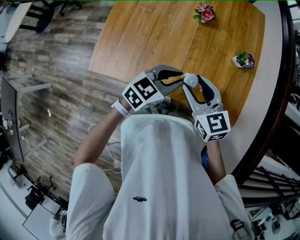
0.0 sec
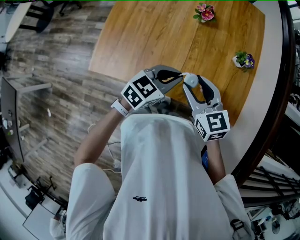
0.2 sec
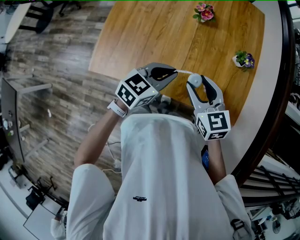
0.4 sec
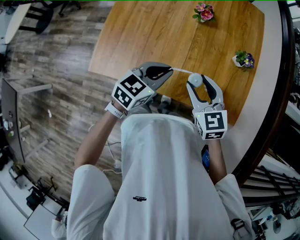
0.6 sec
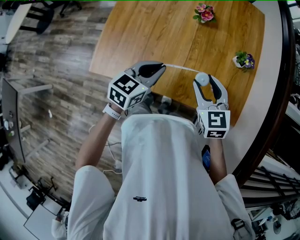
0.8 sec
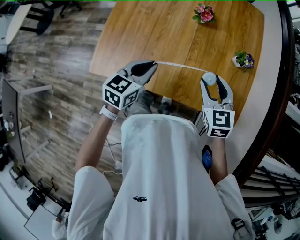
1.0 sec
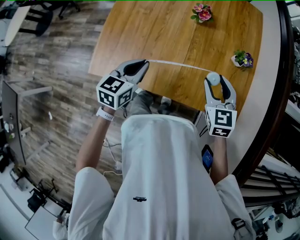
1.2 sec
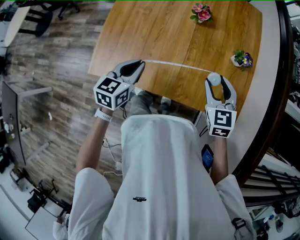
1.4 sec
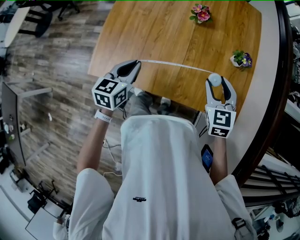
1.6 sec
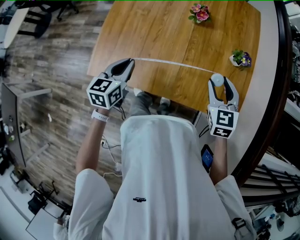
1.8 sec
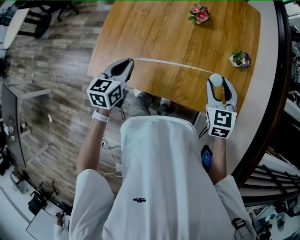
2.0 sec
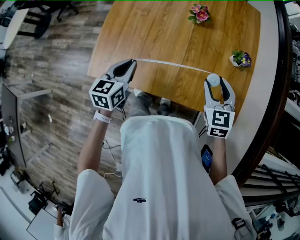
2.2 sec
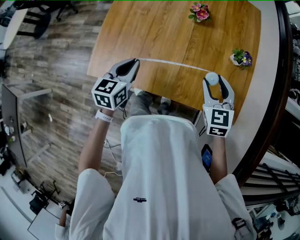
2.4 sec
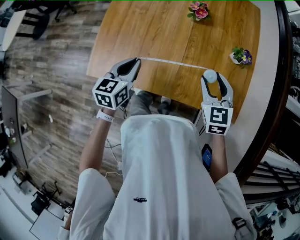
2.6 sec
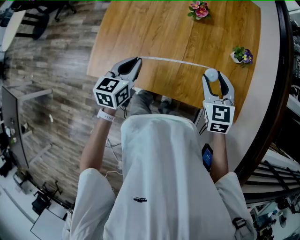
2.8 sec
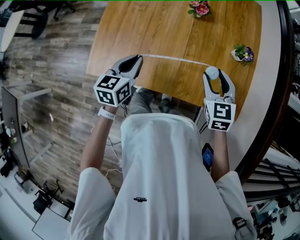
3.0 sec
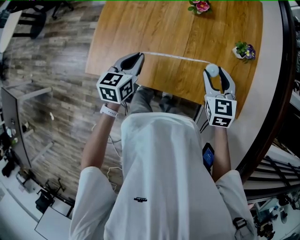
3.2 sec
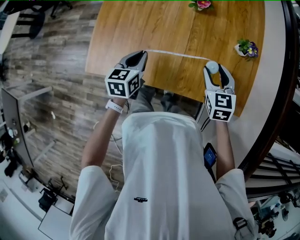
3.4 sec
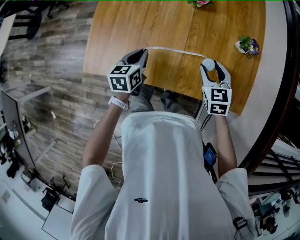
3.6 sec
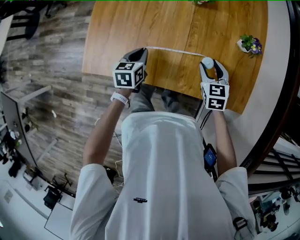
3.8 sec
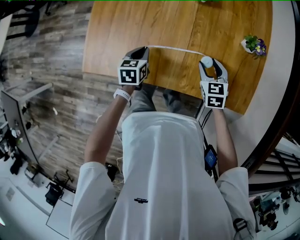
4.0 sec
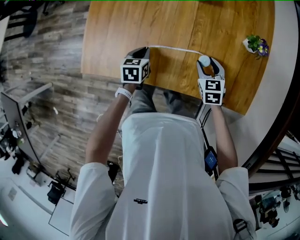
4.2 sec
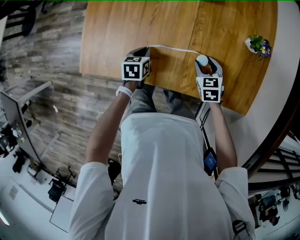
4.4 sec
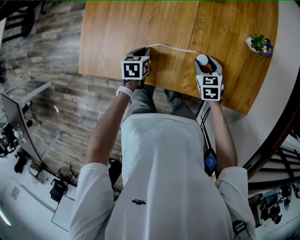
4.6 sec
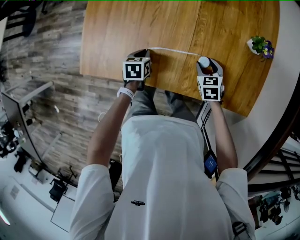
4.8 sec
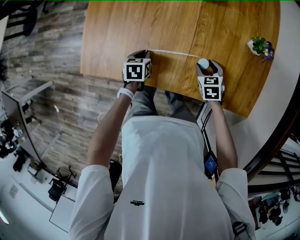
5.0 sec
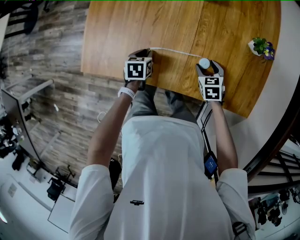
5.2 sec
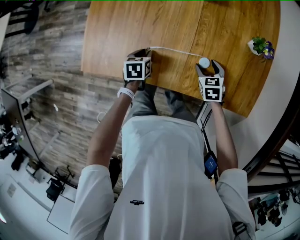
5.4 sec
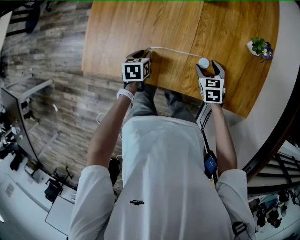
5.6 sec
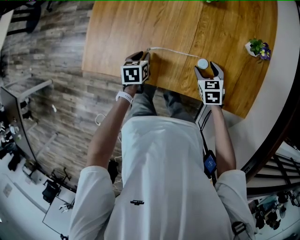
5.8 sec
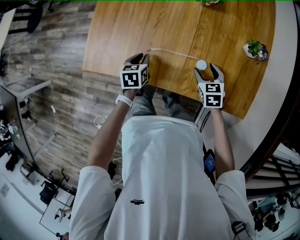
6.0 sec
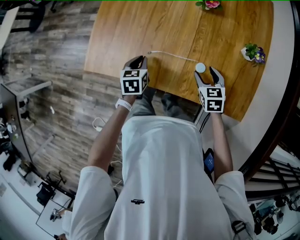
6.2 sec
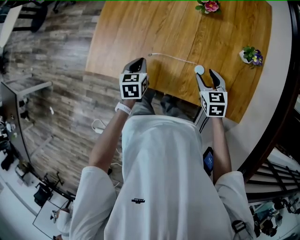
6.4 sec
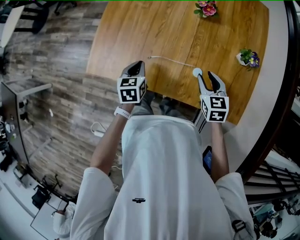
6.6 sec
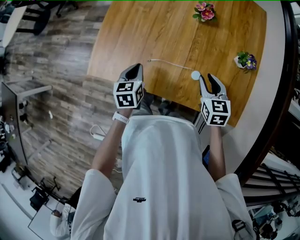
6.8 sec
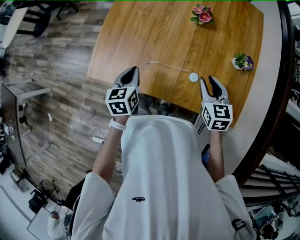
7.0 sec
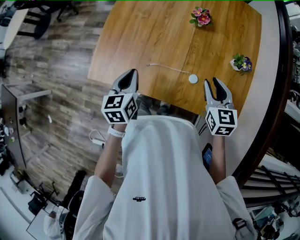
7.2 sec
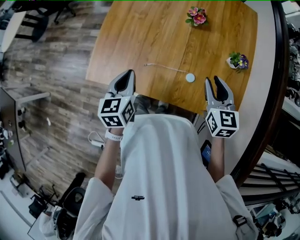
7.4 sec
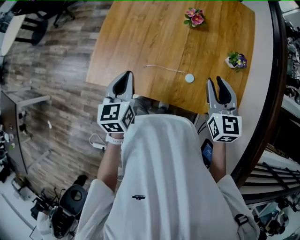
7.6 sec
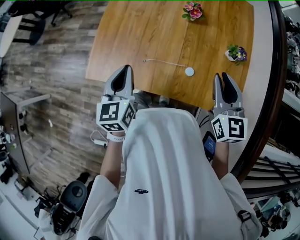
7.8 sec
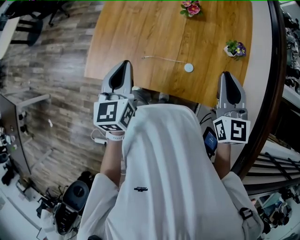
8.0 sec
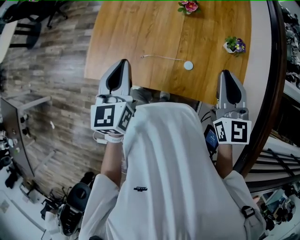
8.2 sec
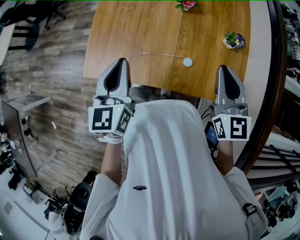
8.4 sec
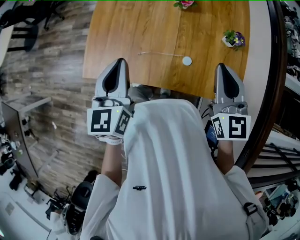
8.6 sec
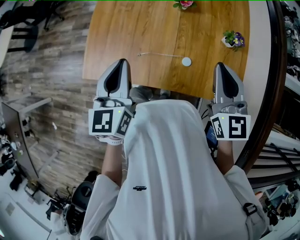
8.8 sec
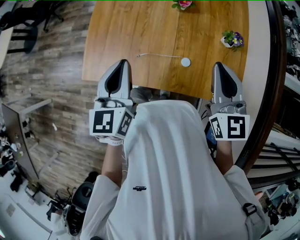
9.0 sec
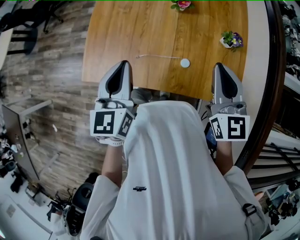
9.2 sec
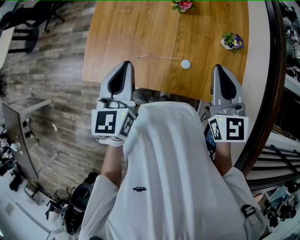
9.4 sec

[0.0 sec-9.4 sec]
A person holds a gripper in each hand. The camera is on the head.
0.0 sec to 1.6 sec: The left gripper goes some 15 cm to the left, and turns by roughly 30 degrees, while the right gripper travels to the right and forward by some 10 cm, and changes its angle by approximately 30 degrees.
1.6 sec to 3.2 sec: The grippers move only a little.
3.2 sec to 4.8 sec: Both grippers move downward, some 20 cm. The left gripper swivels approximately 30 degrees. The right gripper turns by some 20 degrees.
4.8 sec to 6.2 sec: The two grippers go about 5 cm upward.
6.2 sec to 7.8 sec: The two grippers go some 25 cm upward. The left gripper swivels about 30 degrees. The right gripper points its fingers about 30 degrees further upward, and closes.
7.8 sec to 9.4 sec: The left gripper shifts some 5 cm upward.

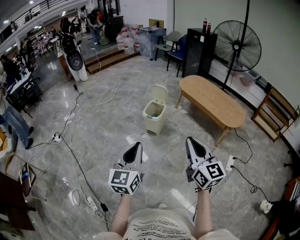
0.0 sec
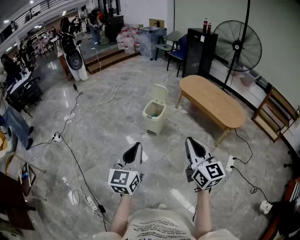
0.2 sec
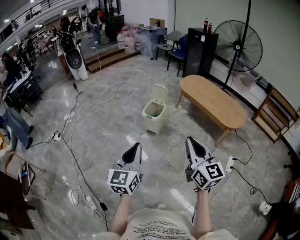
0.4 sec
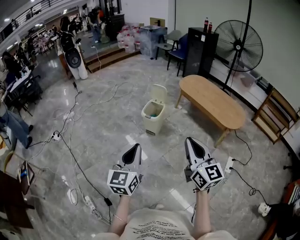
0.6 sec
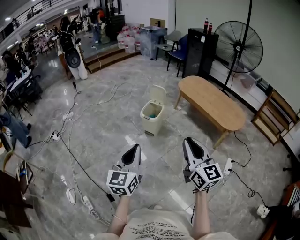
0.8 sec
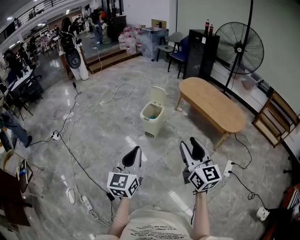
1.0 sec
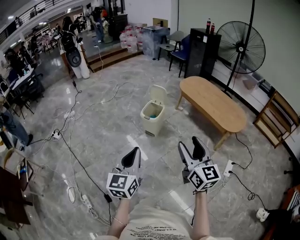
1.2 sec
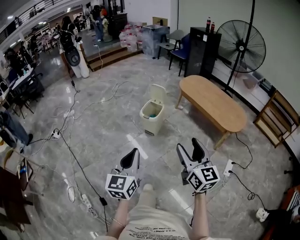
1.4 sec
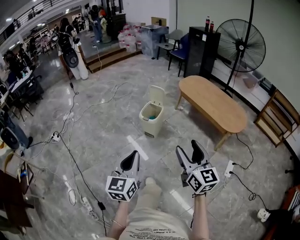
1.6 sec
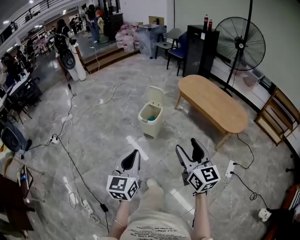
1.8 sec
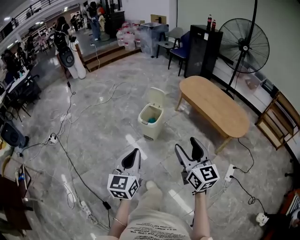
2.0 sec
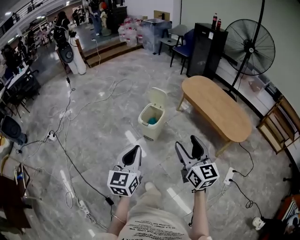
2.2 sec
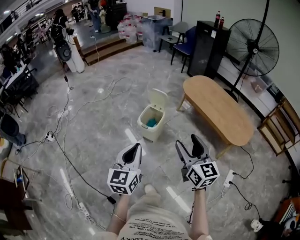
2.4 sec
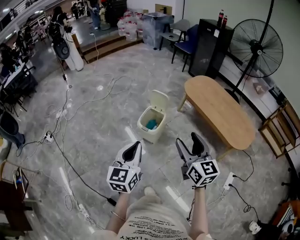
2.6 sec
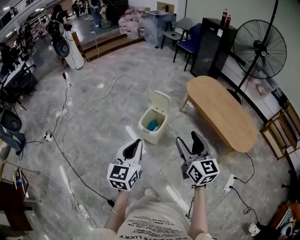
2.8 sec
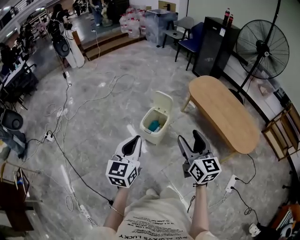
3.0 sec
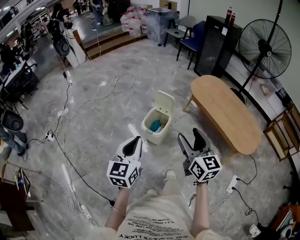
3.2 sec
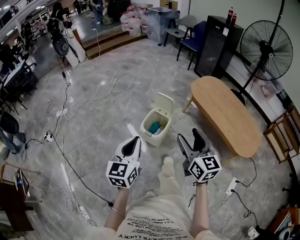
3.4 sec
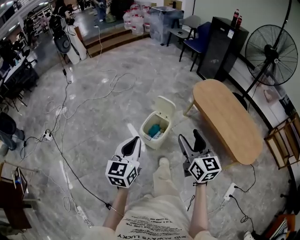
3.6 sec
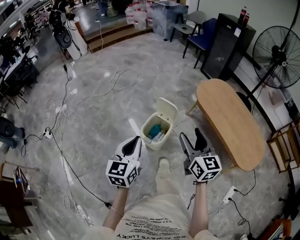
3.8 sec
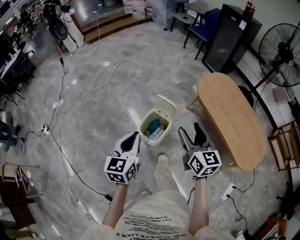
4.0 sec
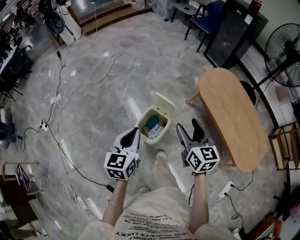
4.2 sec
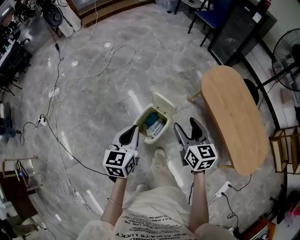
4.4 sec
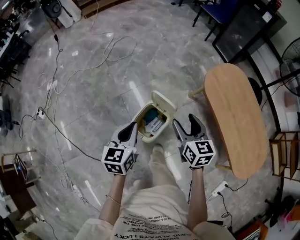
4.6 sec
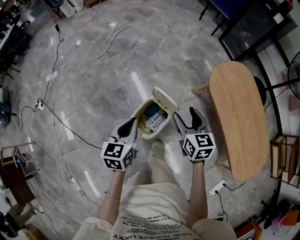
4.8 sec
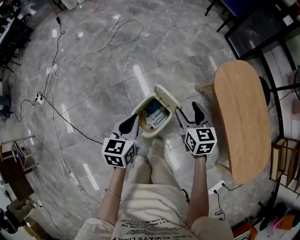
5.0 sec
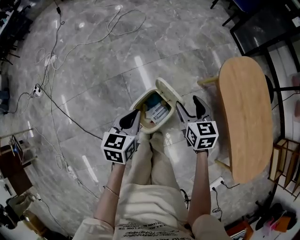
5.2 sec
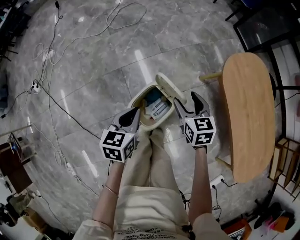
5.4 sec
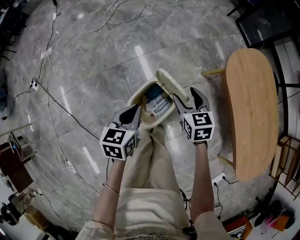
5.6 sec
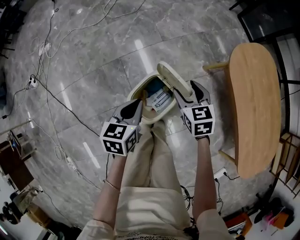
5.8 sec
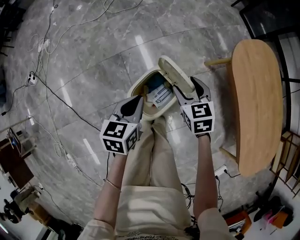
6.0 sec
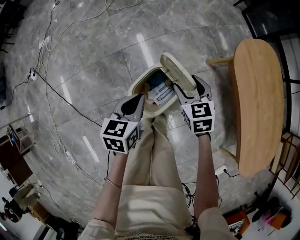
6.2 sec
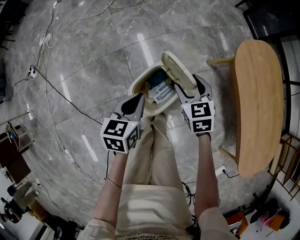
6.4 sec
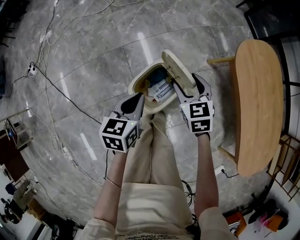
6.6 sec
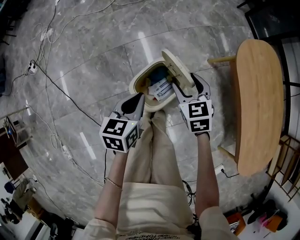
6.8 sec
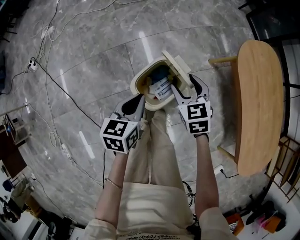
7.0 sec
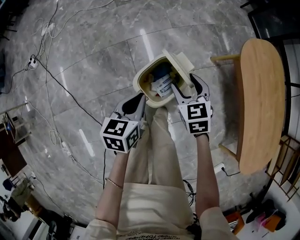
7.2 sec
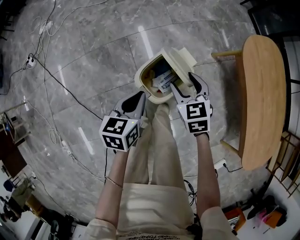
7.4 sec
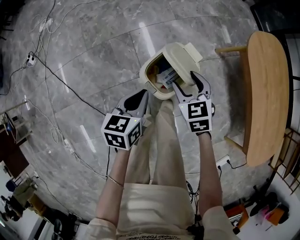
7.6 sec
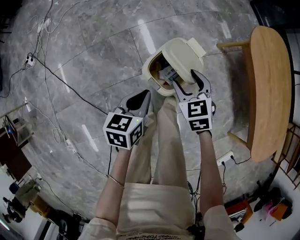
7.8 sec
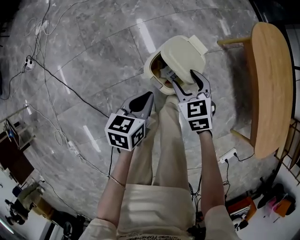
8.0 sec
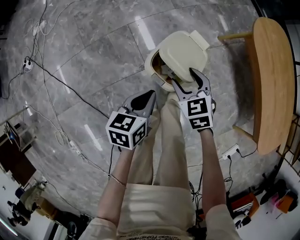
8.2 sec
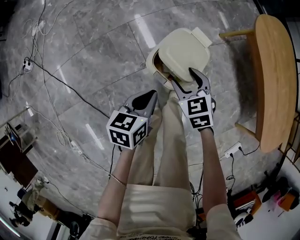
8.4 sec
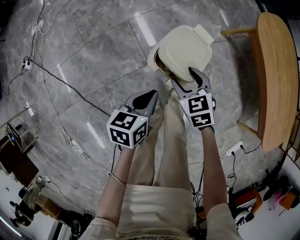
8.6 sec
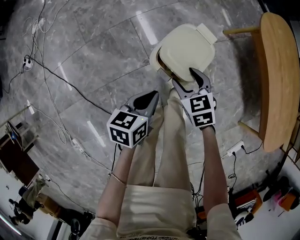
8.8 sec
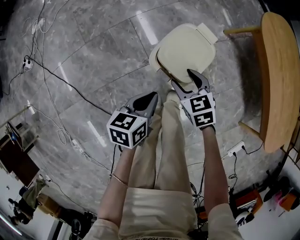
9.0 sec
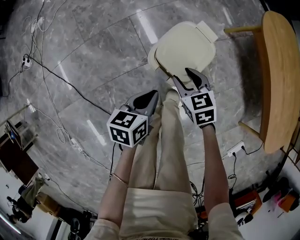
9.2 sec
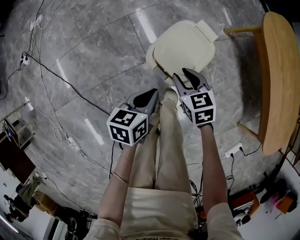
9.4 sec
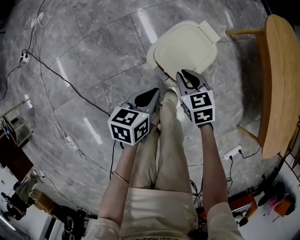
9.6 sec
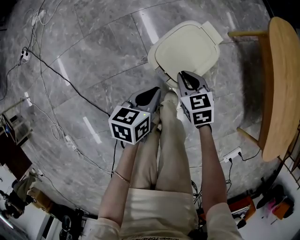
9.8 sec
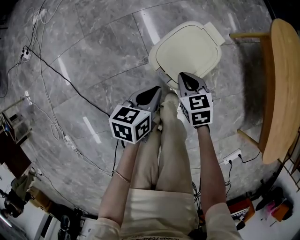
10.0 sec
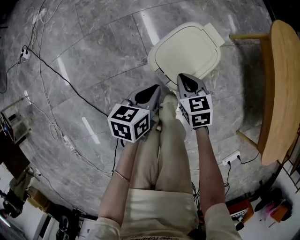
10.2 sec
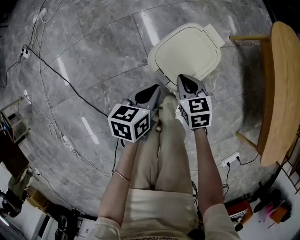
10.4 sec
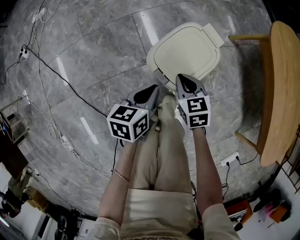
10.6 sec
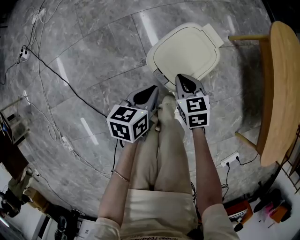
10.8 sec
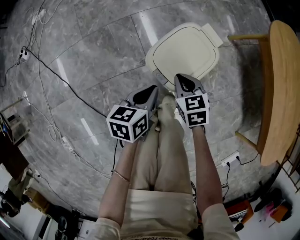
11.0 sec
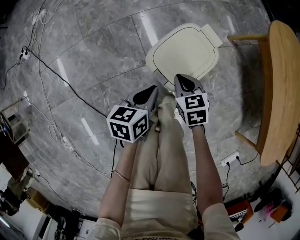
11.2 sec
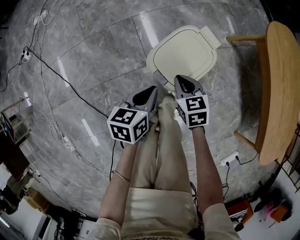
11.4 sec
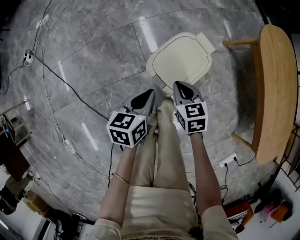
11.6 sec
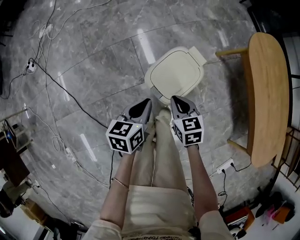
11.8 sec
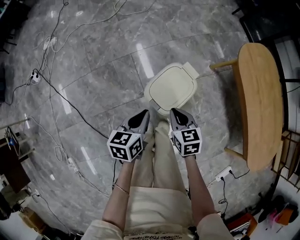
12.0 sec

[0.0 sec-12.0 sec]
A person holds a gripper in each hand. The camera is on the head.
0.0 sec to 1.6 sec: The right gripper changes place by roughly 10 cm, and opens. The left gripper moves about 5 cm.
1.6 sec to 3.0 sec: The two grippers go about 30 cm forward.
3.0 sec to 4.4 sec: The grippers both shift forward and downward by some 30 cm.
4.4 sec to 6.0 sec: The left gripper heads downward, covering roughly 20 cm. Meanwhile the right gripper moves downward and forward, some 25 cm, and swivels roughly 30 degrees.
6.0 sec to 7.6 sec: Both grippers move backward and to the left, about 10 cm.
7.6 sec to 9.0 sec: The two grippers go approximately 10 cm downward and backward.
9.0 sec to 10.4 sec: The two grippers go about 5 cm downward. The right gripper closes up.
10.4 sec to 12.0 sec: The two grippers go approximately 15 cm upward.

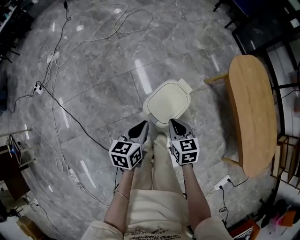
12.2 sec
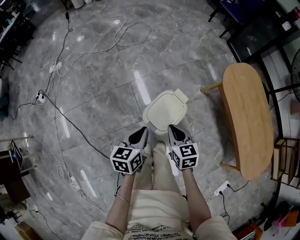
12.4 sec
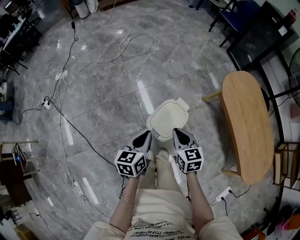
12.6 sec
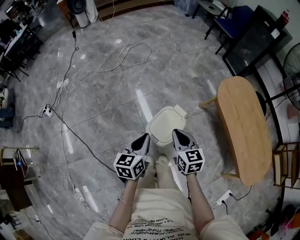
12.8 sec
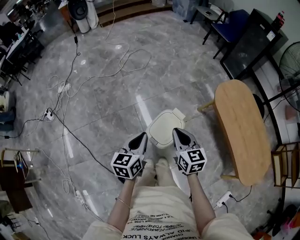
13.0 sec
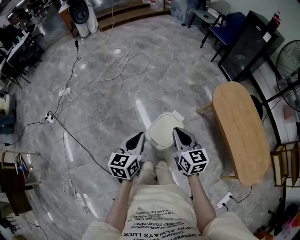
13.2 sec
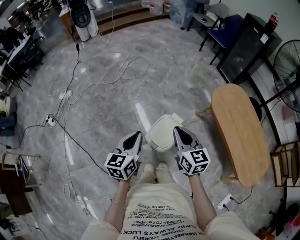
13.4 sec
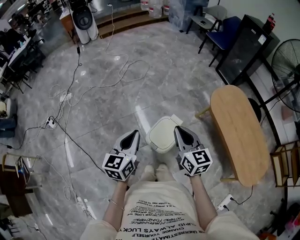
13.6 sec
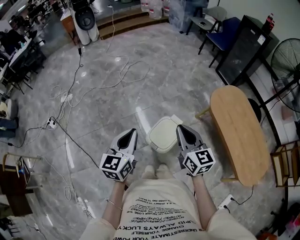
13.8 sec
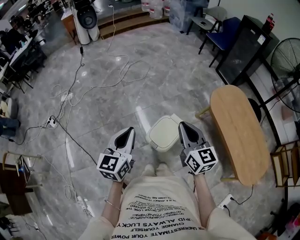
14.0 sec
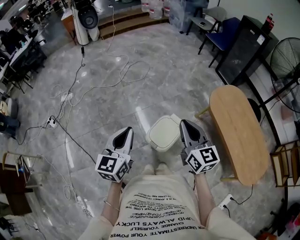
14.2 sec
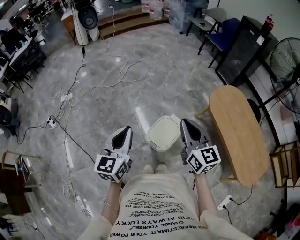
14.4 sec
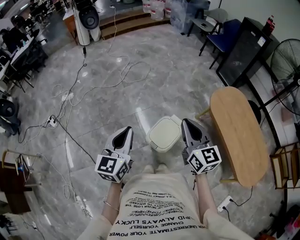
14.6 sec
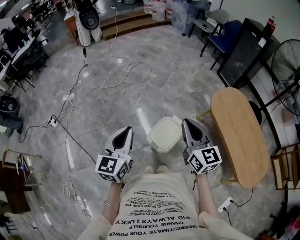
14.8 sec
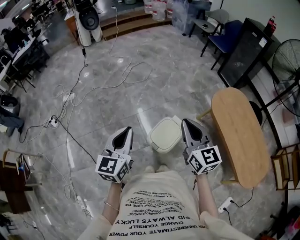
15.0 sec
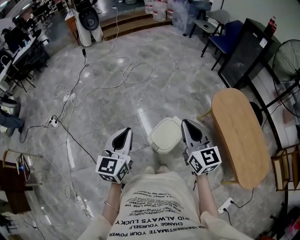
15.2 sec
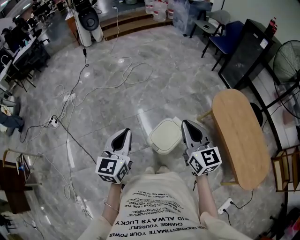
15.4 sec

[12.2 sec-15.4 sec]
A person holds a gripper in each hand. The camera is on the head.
12.2 sec to 13.8 sec: Both grippers travel together upward, about 25 cm. The right gripper points its fingers some 30 degrees further upward. Meanwhile the left gripper turns by about 30 degrees.
13.8 sec to 15.4 sec: The right gripper changes place by some 5 cm.
